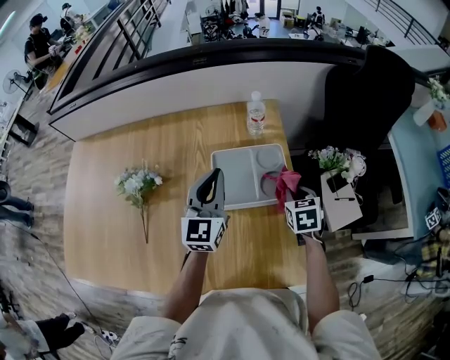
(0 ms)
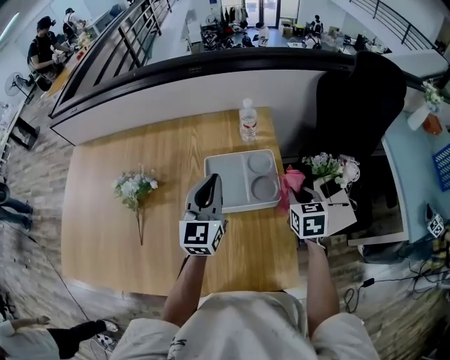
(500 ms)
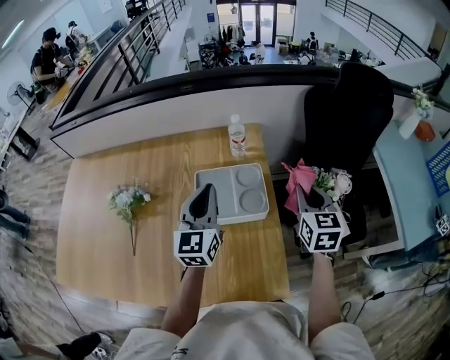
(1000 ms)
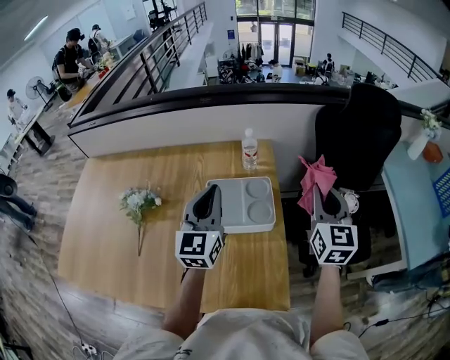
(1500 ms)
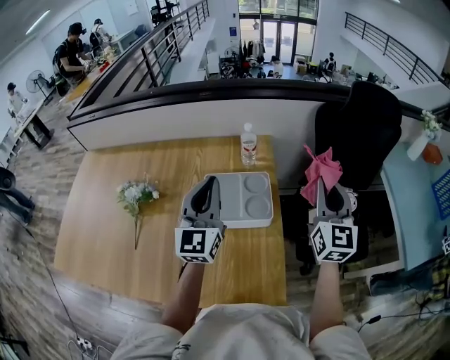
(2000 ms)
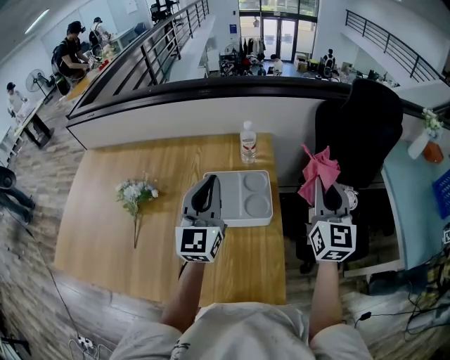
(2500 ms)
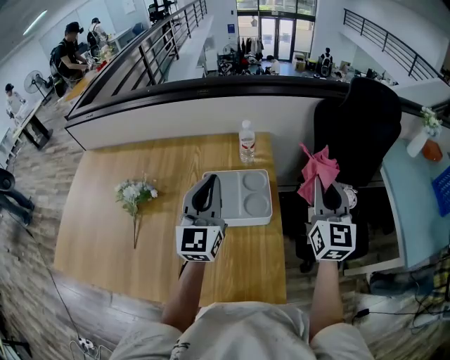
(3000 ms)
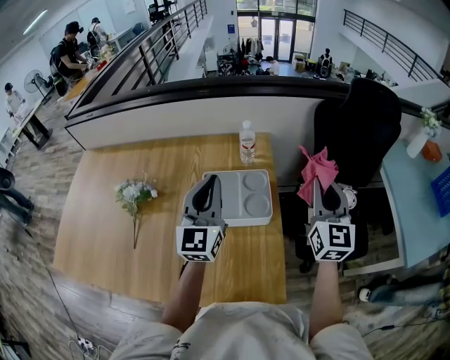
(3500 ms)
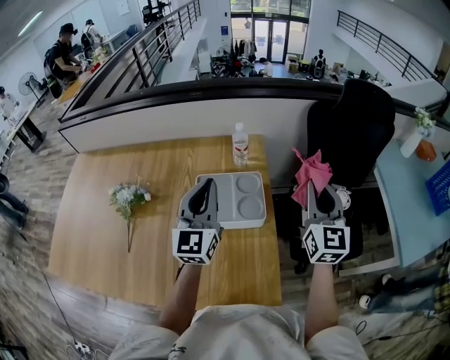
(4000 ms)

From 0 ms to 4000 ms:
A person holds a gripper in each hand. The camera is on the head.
From 0 ms to 2000 ms: The left gripper goes approximately 10 cm upward. Meanwhile the right gripper goes some 25 cm upward, and points its fingers about 50 degrees further upward.
From 2000 ms to 4000 ms: There are only small adjustments of the grippers.

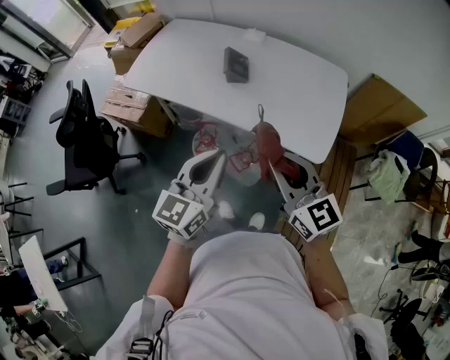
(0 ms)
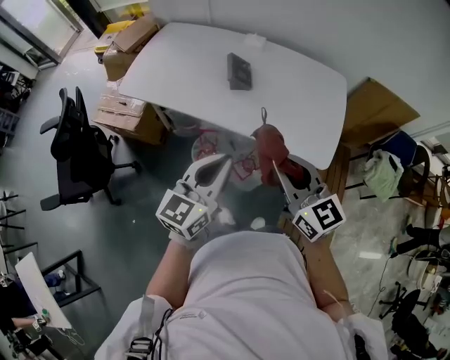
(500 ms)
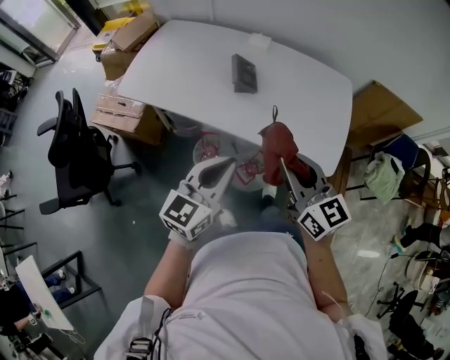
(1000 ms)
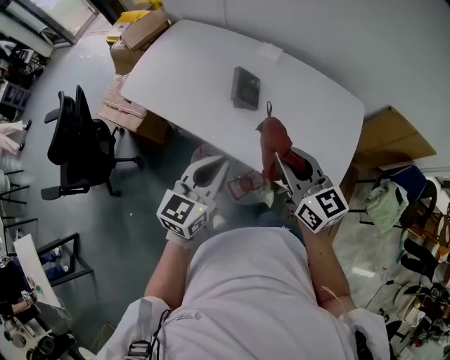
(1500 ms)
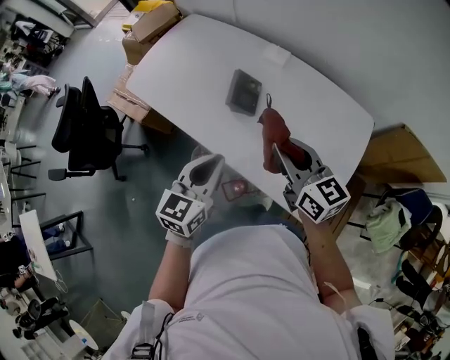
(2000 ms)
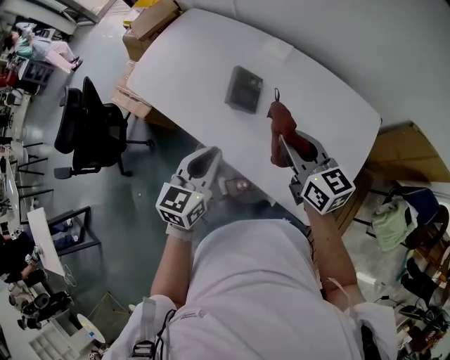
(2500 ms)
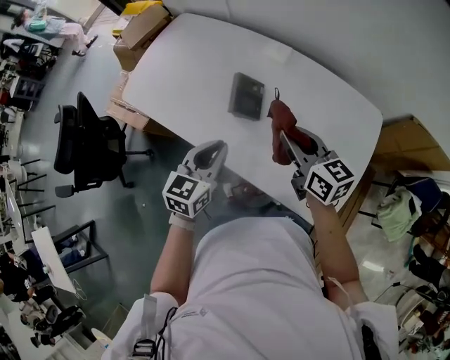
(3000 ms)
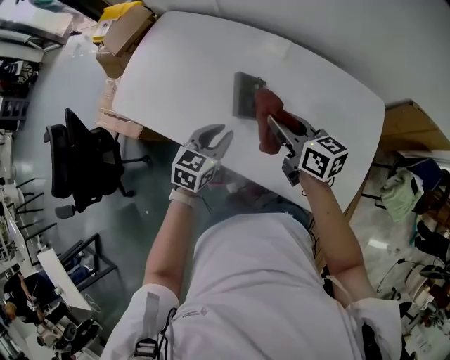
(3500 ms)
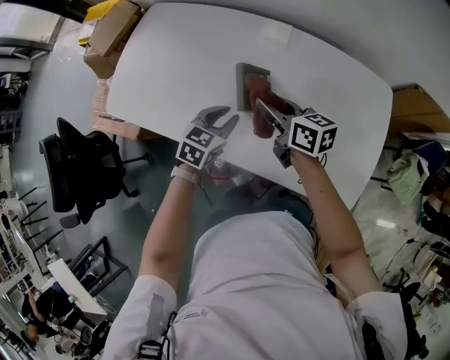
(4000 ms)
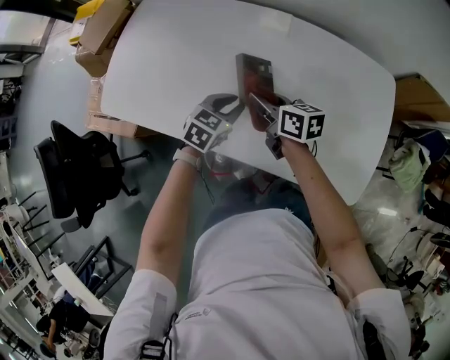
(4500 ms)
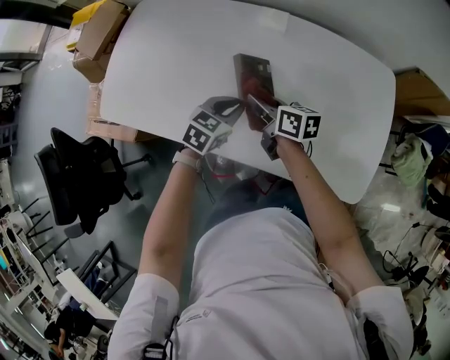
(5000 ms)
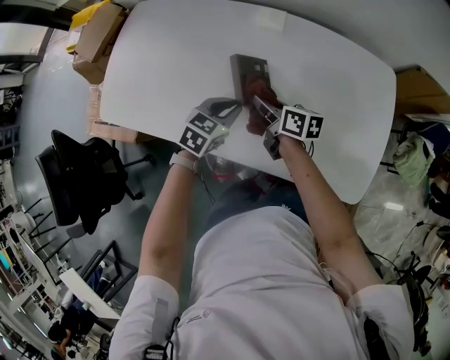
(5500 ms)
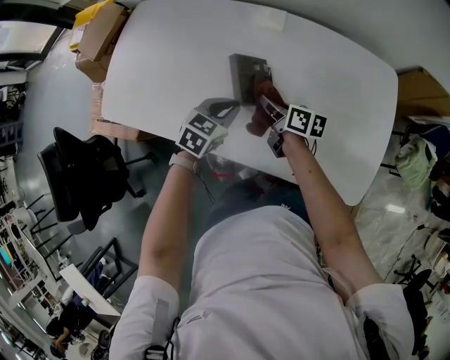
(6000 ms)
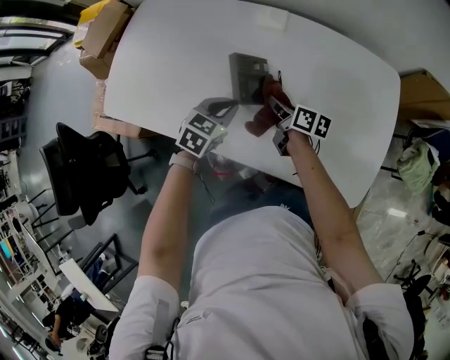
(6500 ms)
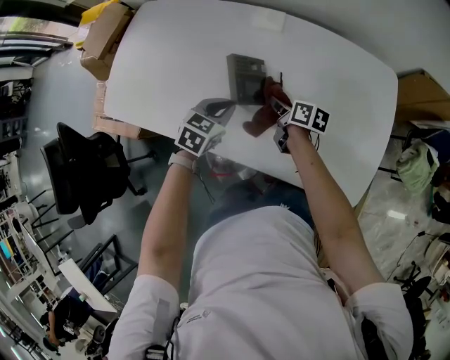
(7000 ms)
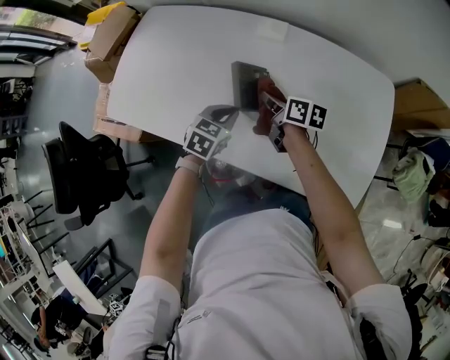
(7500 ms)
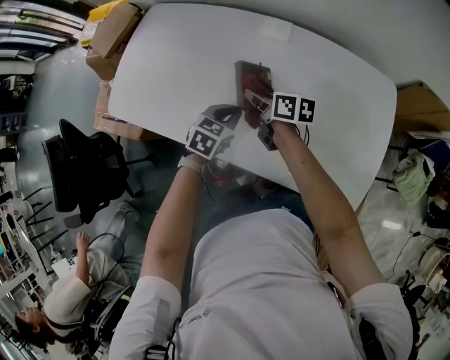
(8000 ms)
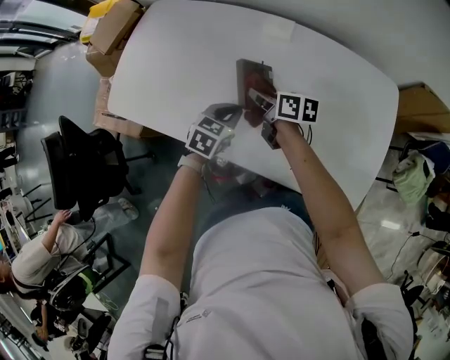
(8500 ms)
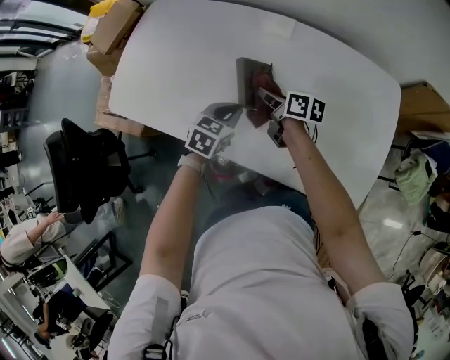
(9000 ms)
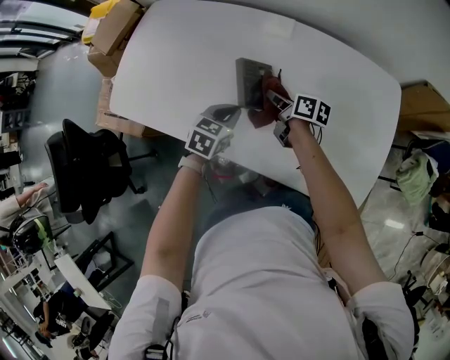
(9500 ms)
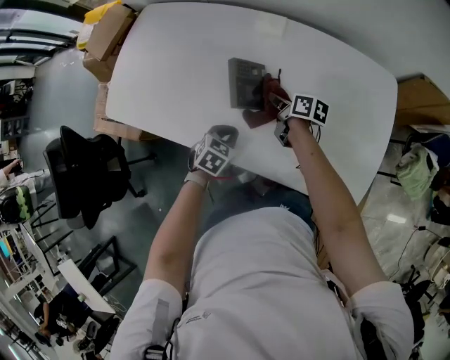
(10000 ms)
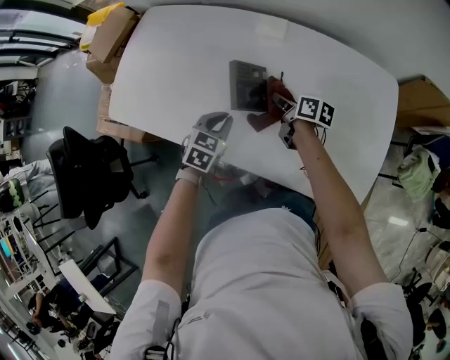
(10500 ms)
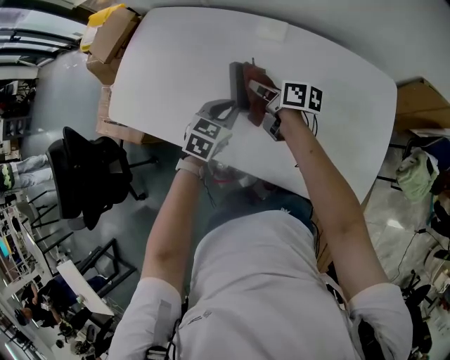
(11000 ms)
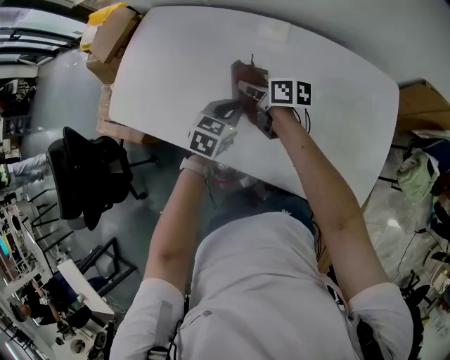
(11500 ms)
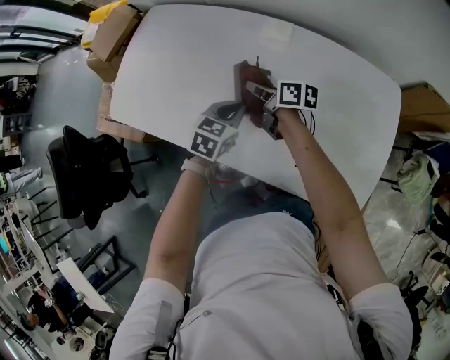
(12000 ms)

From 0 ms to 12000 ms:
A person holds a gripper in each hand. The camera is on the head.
From 0 ms to 2000 ms: The two grippers go approximately 25 cm forward.
From 2000 ms to 4000 ms: The left gripper is displaced forward and downward by some 25 cm, changes its angle by some 30 degrees, and opens. Meanwhile the right gripper travels forward, downward and to the left by some 25 cm, and changes its angle by approximately 30 degrees.
From 4000 ms to 6000 ms: The right gripper heads downward, covering roughly 15 cm, and turns by approximately 20 degrees.
From 6000 ms to 8000 ms: The right gripper goes roughly 5 cm to the left.
From 8000 ms to 10000 ms: The right gripper heads downward and to the right, covering roughly 10 cm. The left gripper moves downward and backward, approximately 10 cm.
From 10000 ms to 12000 ms: The right gripper shifts some 10 cm to the left and upward, while the left gripper moves forward and upward, approximately 15 cm.

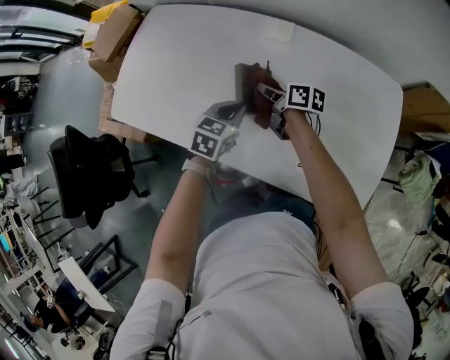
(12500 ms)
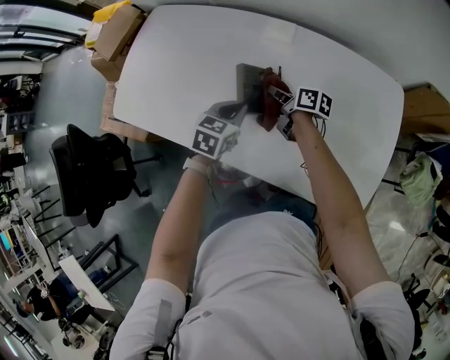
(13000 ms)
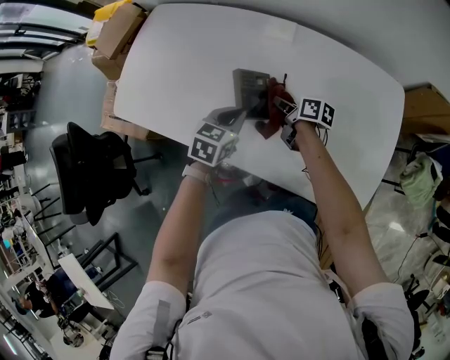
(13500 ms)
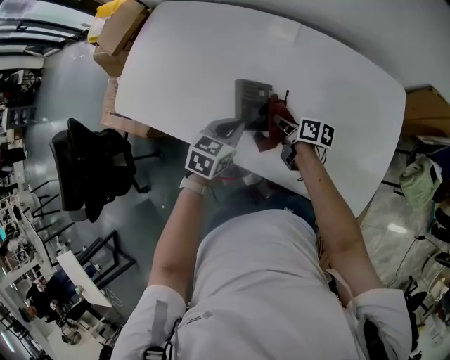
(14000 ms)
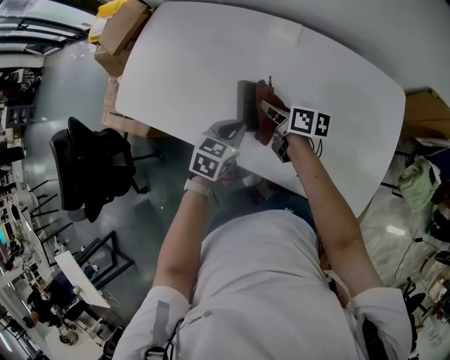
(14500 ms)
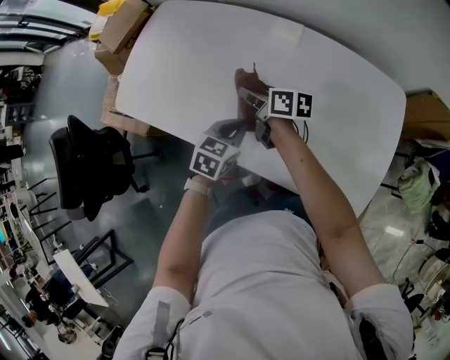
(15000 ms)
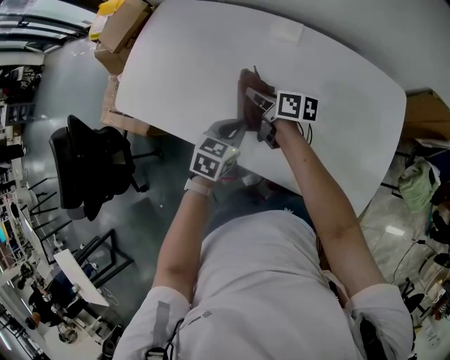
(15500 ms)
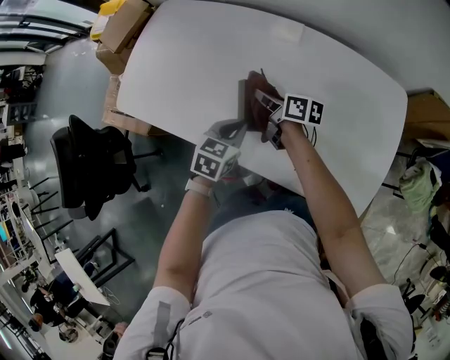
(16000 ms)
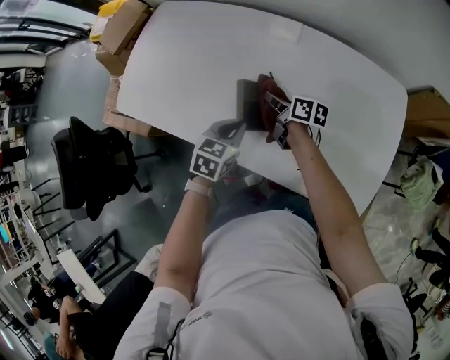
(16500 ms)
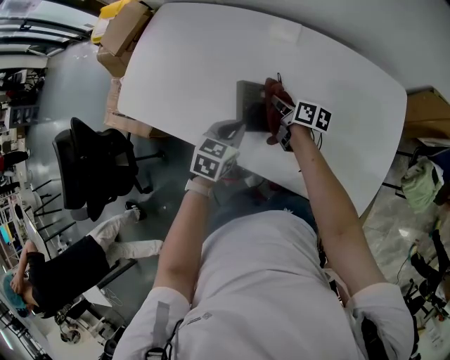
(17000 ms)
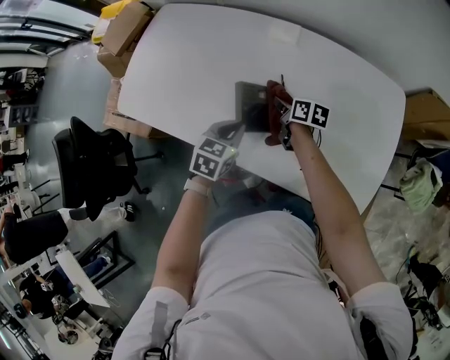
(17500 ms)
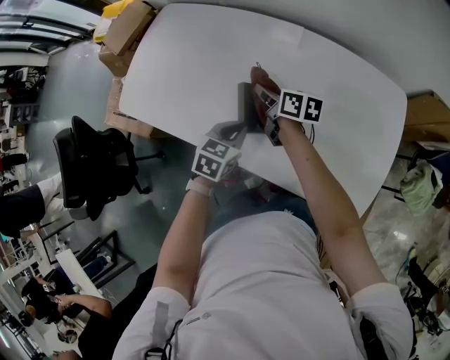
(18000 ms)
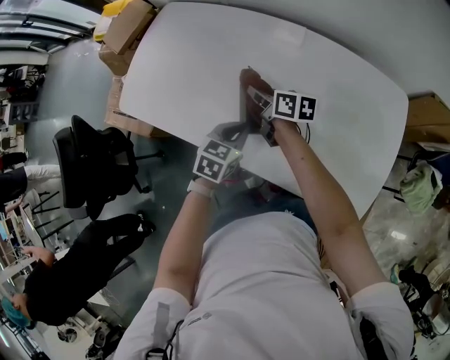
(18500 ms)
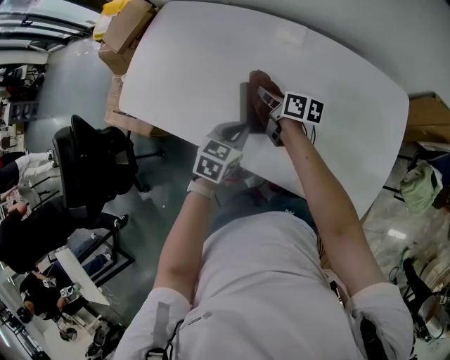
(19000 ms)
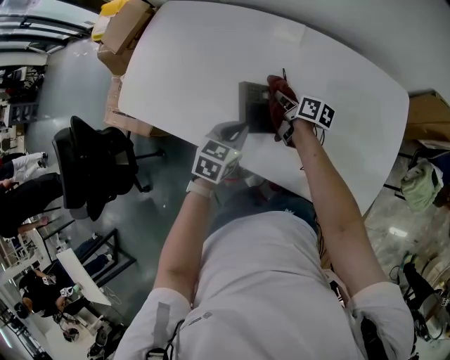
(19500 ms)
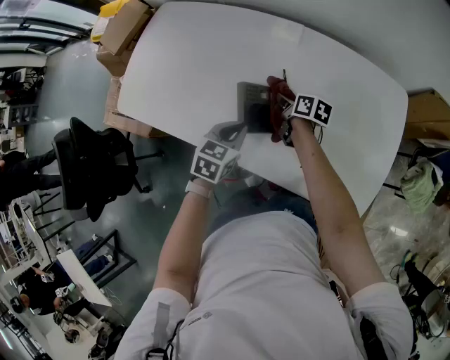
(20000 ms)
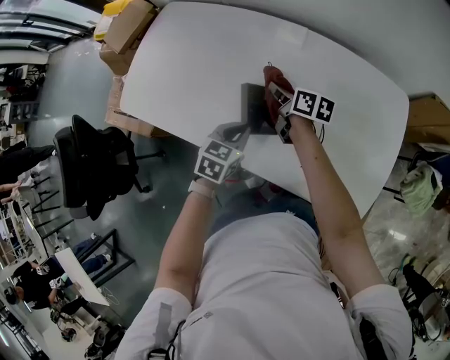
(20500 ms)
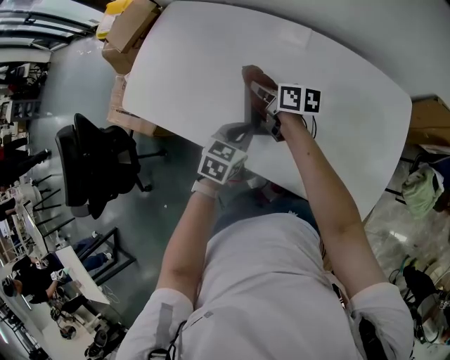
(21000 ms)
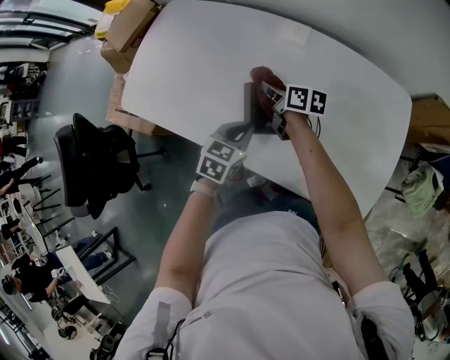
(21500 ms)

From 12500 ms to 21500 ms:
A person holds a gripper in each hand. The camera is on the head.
From 12500 ms to 14500 ms: The two grippers go roughly 5 cm backward.
From 14500 ms to 17000 ms: The right gripper is displaced downward by about 5 cm.
From 17000 ms to 19500 ms: The right gripper goes to the left and returns, about 10 cm each way.
From 19500 ms to 21500 ms: The right gripper heads upward and to the left, covering approximately 10 cm.

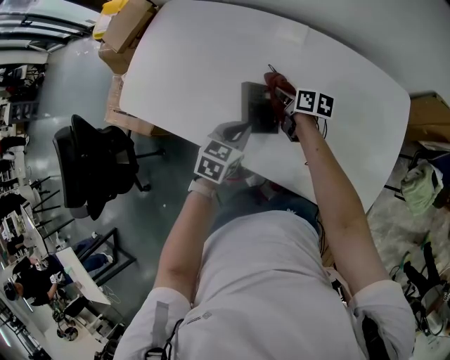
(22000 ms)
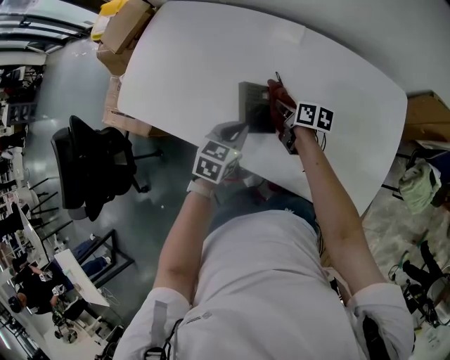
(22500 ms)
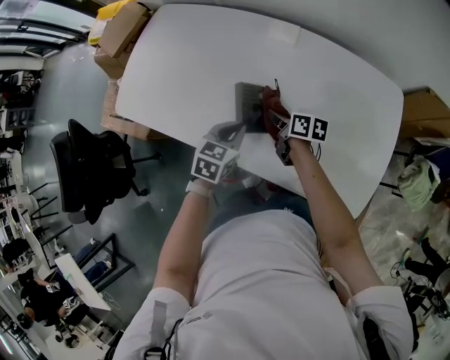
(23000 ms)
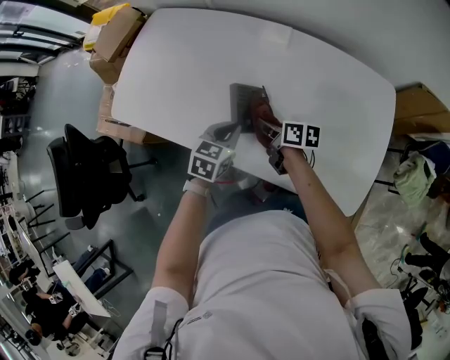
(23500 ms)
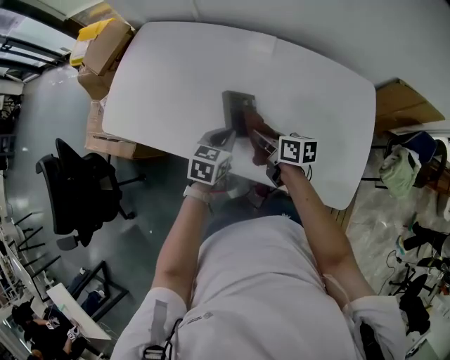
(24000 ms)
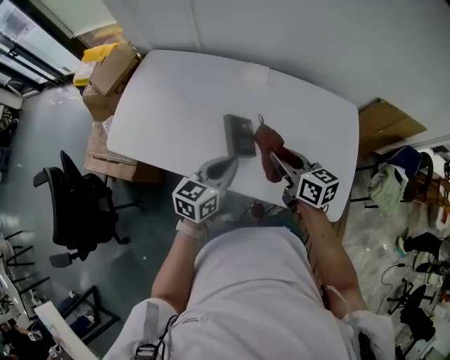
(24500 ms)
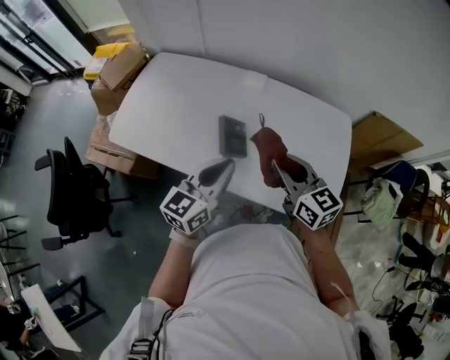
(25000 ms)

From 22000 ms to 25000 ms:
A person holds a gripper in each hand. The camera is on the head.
From 22000 ms to 23500 ms: The right gripper shifts approximately 10 cm backward.
From 23500 ms to 25000 ms: The left gripper travels upward and backward by about 25 cm, and angles its fingers upward, by approximately 40 degrees; the right gripper goes roughly 25 cm upward, and twists roughly 50 degrees counterclockwise, seen from behind.
